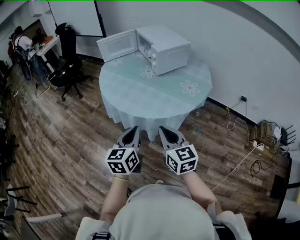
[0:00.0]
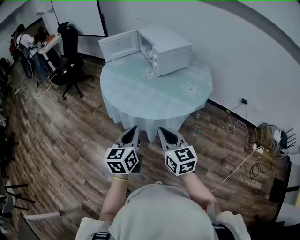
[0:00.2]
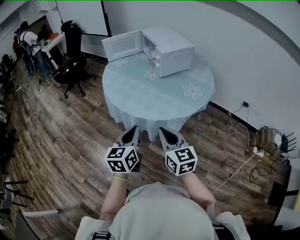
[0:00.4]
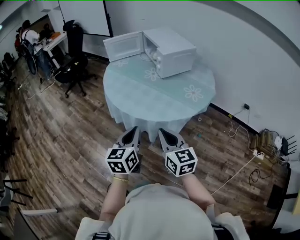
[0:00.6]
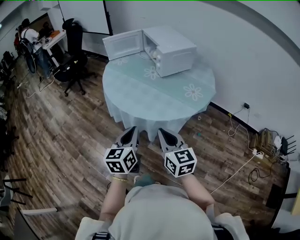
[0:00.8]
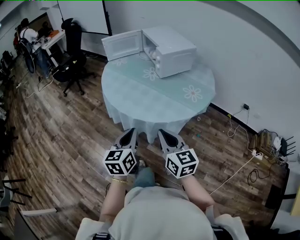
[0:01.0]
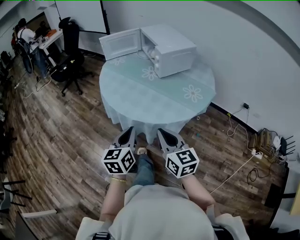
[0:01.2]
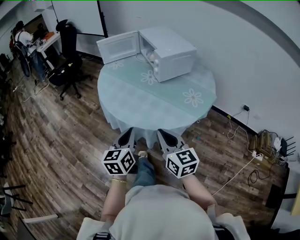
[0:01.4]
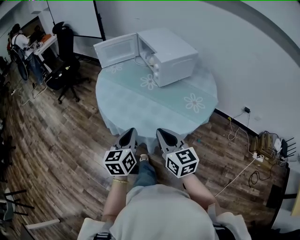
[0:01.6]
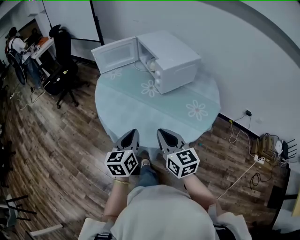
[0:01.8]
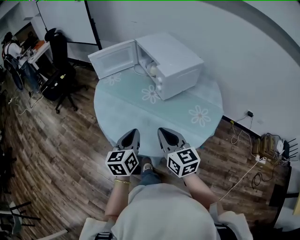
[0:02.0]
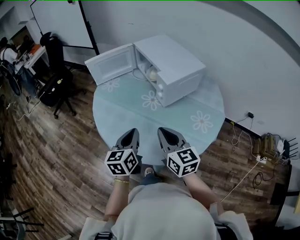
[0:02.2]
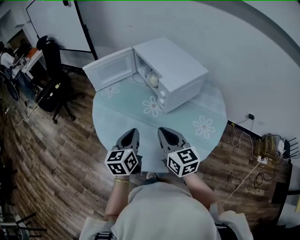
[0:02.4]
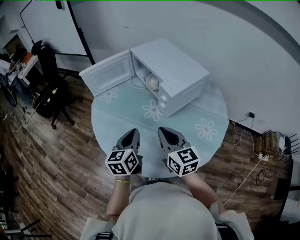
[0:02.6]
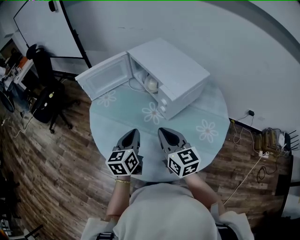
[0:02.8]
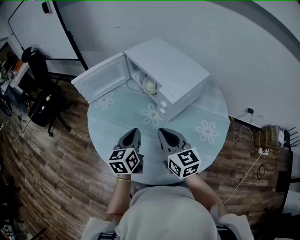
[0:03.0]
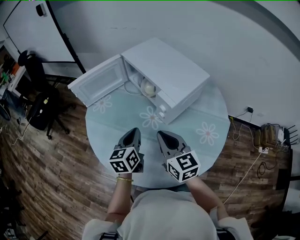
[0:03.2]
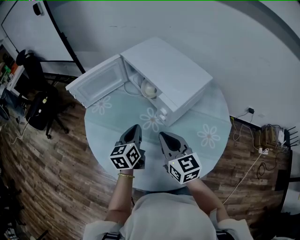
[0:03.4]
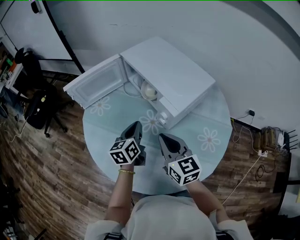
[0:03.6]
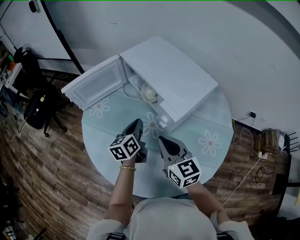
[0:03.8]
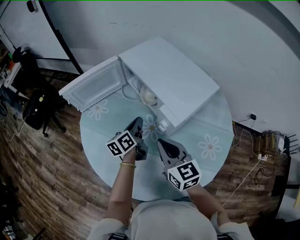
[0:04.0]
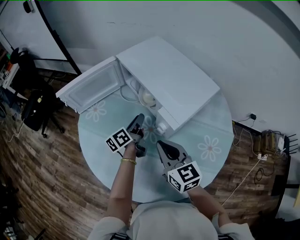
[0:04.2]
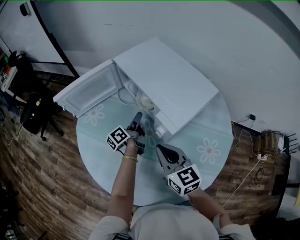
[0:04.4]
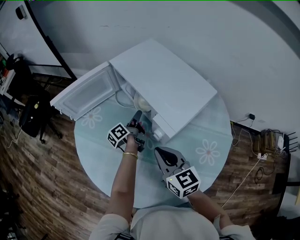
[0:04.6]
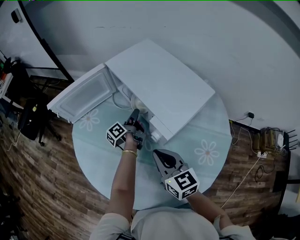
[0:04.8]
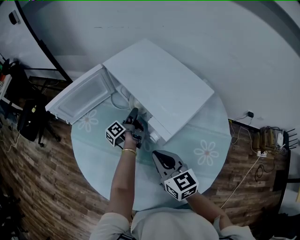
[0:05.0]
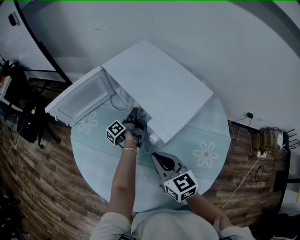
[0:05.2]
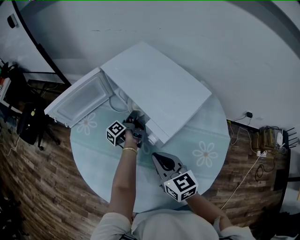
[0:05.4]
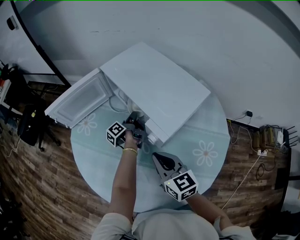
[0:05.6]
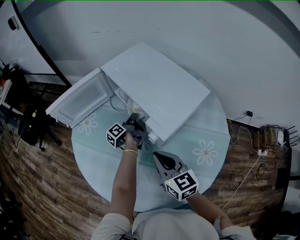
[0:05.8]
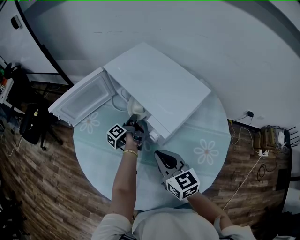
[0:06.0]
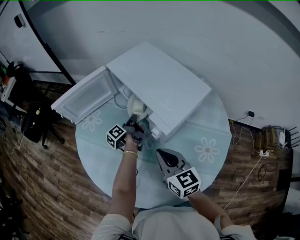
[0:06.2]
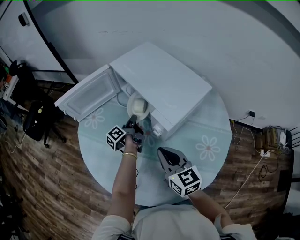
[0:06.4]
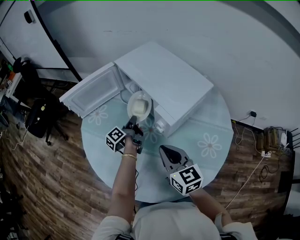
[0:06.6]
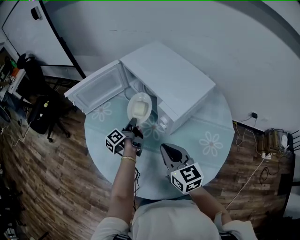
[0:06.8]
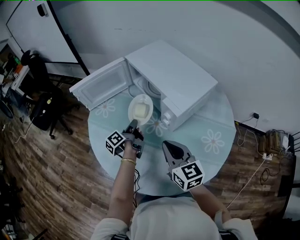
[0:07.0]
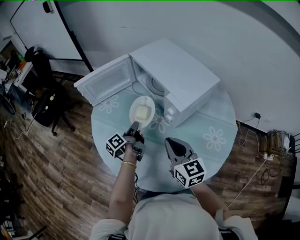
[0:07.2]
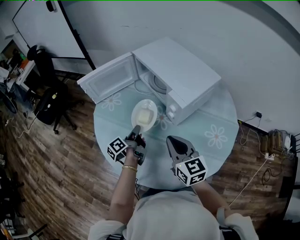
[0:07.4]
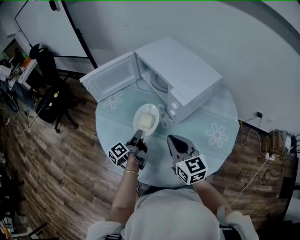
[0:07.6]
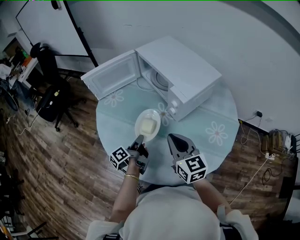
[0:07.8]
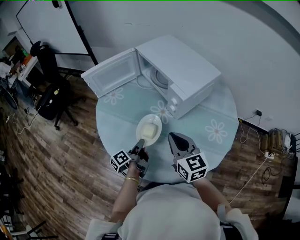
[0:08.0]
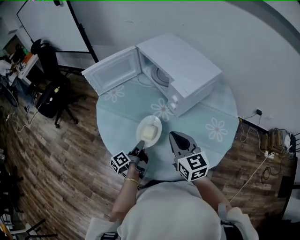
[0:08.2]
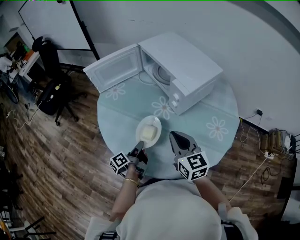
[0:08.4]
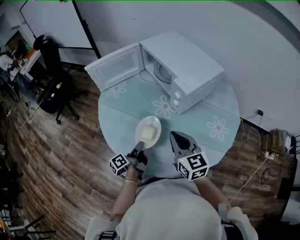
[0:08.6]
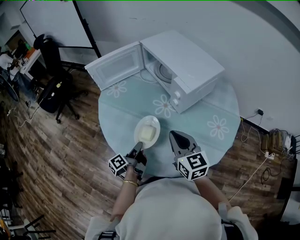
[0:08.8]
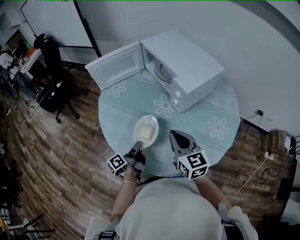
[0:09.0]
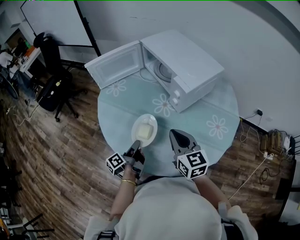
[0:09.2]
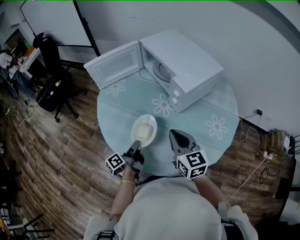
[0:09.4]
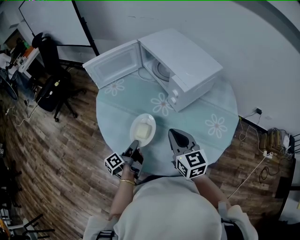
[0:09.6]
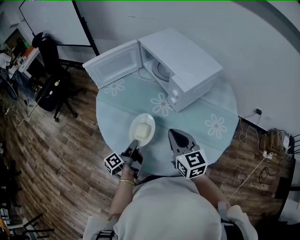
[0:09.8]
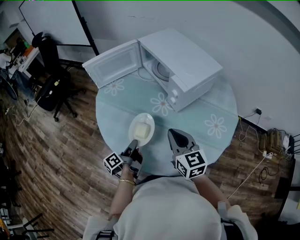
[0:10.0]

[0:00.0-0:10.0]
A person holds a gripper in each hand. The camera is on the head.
0:00.0 to 0:01.4: The grippers both shift forward by roughly 10 cm.
0:01.4 to 0:02.8: Both grippers move forward, roughly 35 cm.
0:02.8 to 0:04.2: The left gripper moves forward and downward, roughly 25 cm, swivels some 40 degrees, and opens its fingers. Meanwhile the right gripper is displaced forward by approximately 10 cm.
0:04.2 to 0:05.8: The left gripper travels forward and downward by approximately 10 cm, and rotates approximately 30 degrees.
0:05.8 to 0:07.2: The right gripper heads backward, covering about 10 cm. Meanwhile the left gripper goes approximately 20 cm backward and to the left.
0:07.2 to 0:08.6: The left gripper heads backward, covering some 20 cm. The right gripper moves backward, roughly 5 cm.
0:08.6 to 0:10.0: The grippers move only a little.

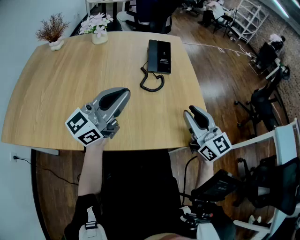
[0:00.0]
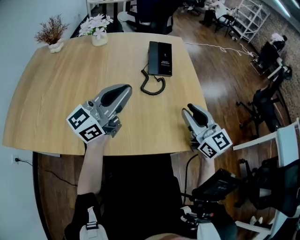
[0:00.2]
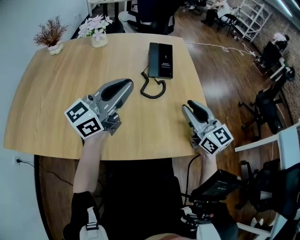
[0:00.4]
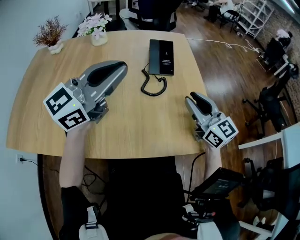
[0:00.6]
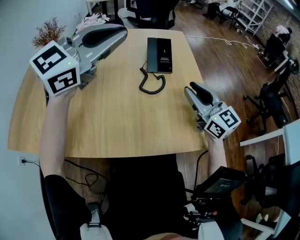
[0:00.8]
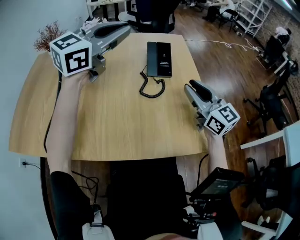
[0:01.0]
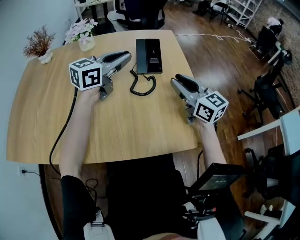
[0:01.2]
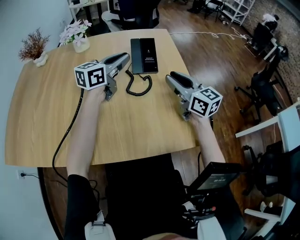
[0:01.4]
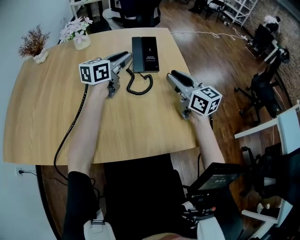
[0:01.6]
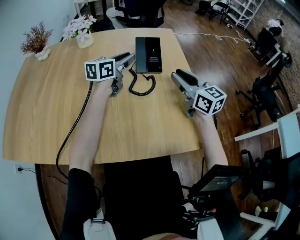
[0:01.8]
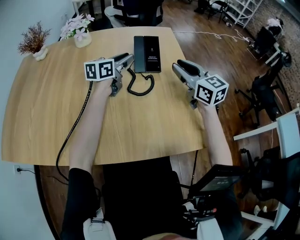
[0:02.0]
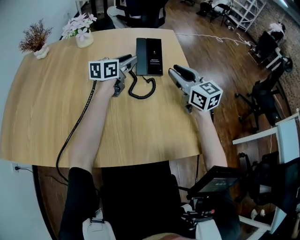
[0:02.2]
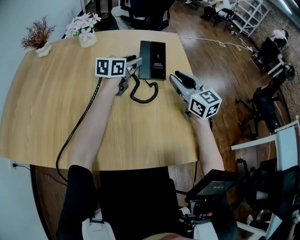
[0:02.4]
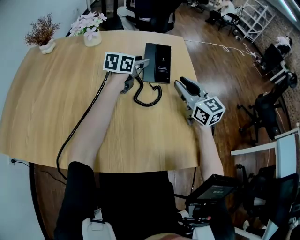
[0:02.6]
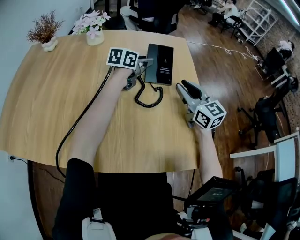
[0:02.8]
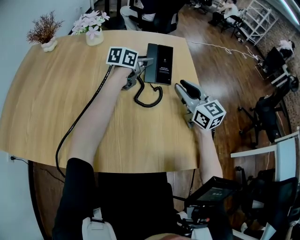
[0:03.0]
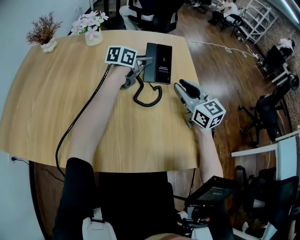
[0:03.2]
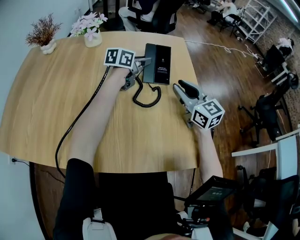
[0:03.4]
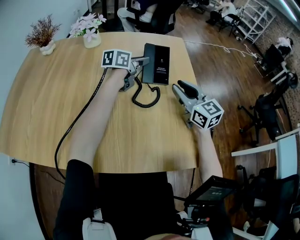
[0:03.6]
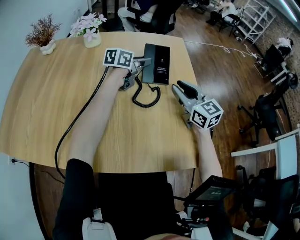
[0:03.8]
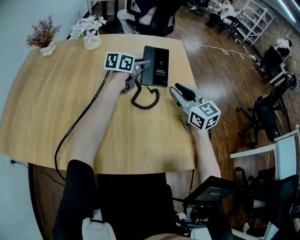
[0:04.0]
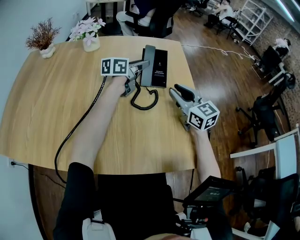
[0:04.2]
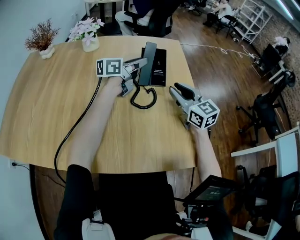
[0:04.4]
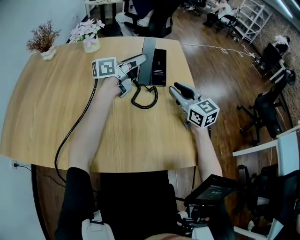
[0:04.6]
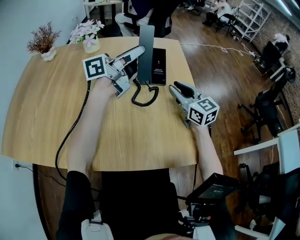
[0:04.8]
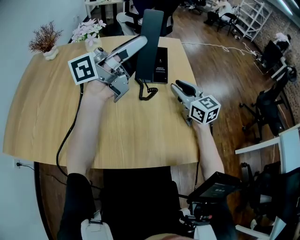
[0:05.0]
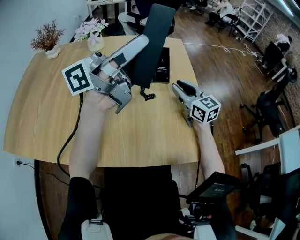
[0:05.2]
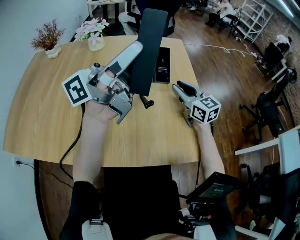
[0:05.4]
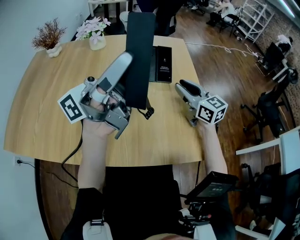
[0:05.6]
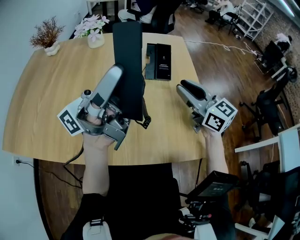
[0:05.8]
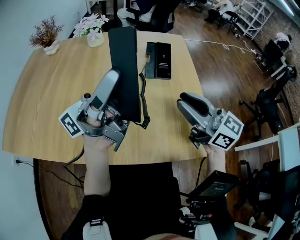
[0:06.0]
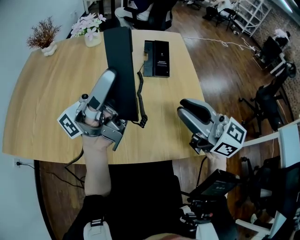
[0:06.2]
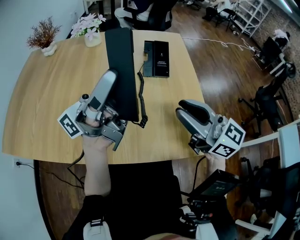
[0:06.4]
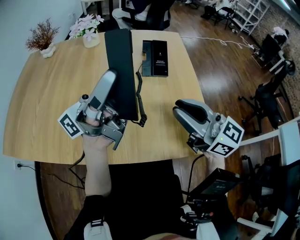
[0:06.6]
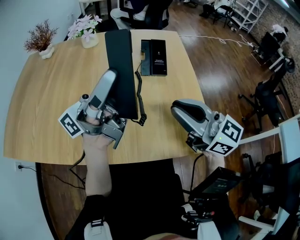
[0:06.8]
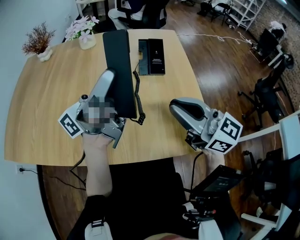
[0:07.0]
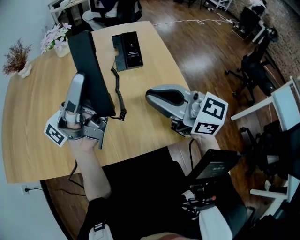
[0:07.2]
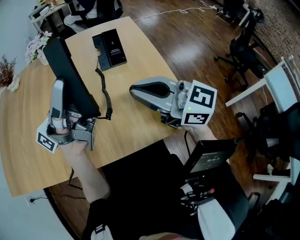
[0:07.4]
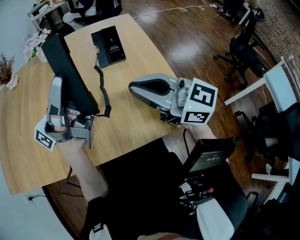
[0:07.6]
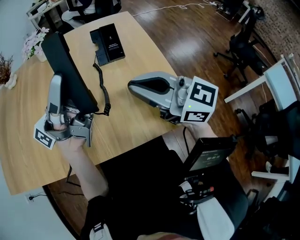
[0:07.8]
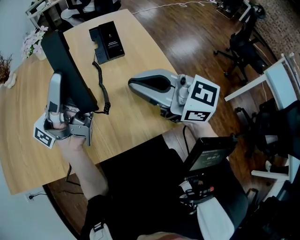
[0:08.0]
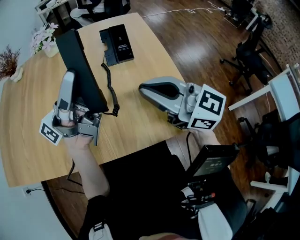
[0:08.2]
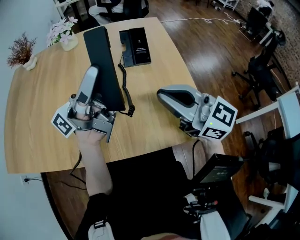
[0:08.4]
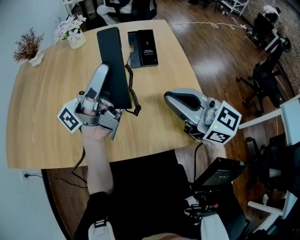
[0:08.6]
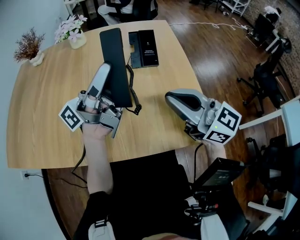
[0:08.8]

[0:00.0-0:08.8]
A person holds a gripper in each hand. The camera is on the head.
0:00.0 to 0:01.4: The right gripper moves forward, some 15 cm. The left gripper heads forward, covering approximately 25 cm, and changes its angle by about 20 degrees.
0:01.4 to 0:03.0: The left gripper travels forward and downward by some 15 cm, changes its angle by some 20 degrees, and opens its fingers, while the right gripper shifts about 5 cm forward.
0:03.0 to 0:04.4: The left gripper goes roughly 5 cm upward, turns by roughly 20 degrees, and closes up.
0:04.4 to 0:05.8: The left gripper is displaced backward and upward by about 35 cm, and angles its fingers upward, by approximately 50 degrees. Meanwhile the right gripper shifts approximately 10 cm backward and upward.
0:05.8 to 0:07.4: The right gripper shifts about 10 cm backward, and closes.
0:07.4 to 0:08.8: The left gripper moves approximately 5 cm.

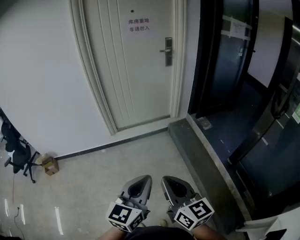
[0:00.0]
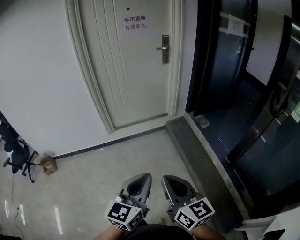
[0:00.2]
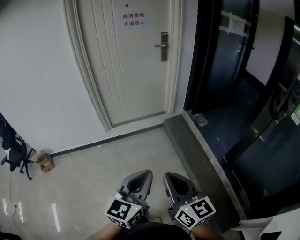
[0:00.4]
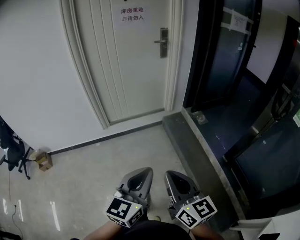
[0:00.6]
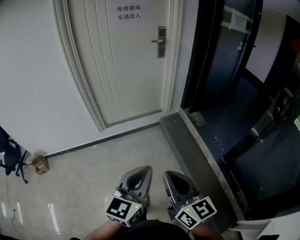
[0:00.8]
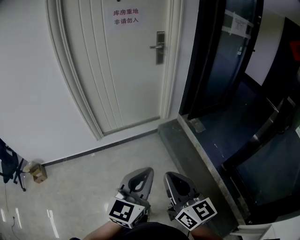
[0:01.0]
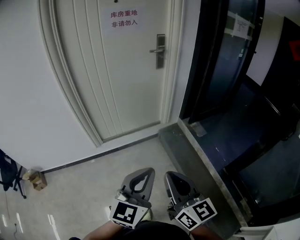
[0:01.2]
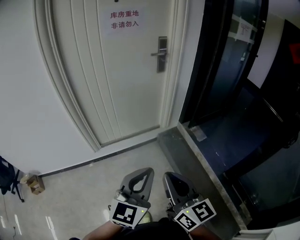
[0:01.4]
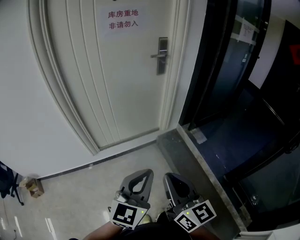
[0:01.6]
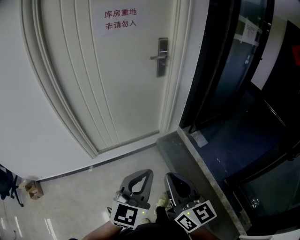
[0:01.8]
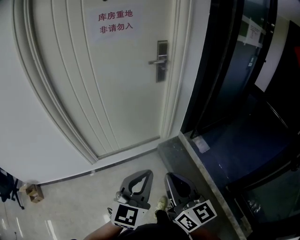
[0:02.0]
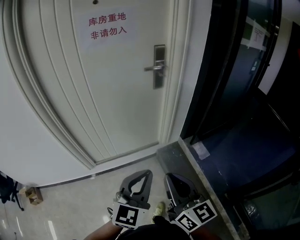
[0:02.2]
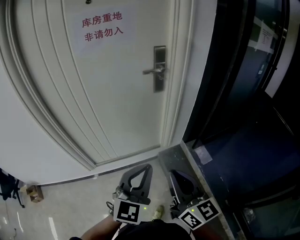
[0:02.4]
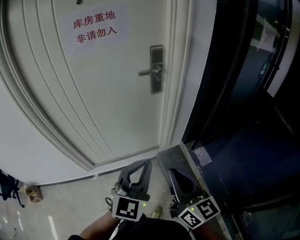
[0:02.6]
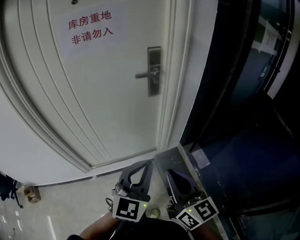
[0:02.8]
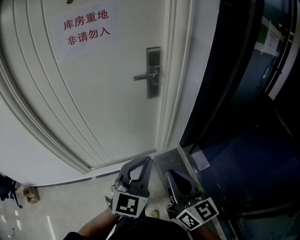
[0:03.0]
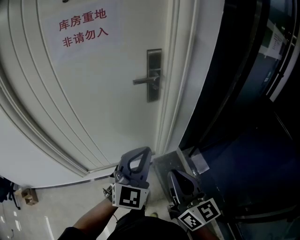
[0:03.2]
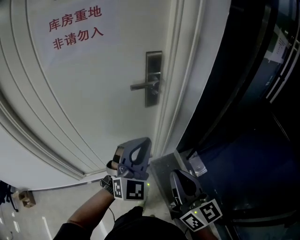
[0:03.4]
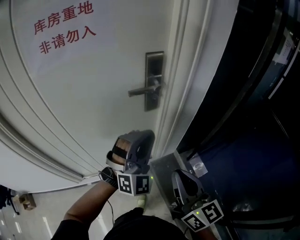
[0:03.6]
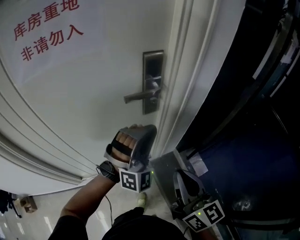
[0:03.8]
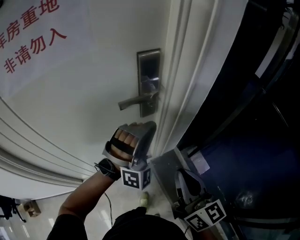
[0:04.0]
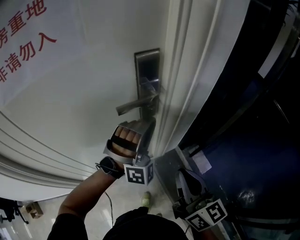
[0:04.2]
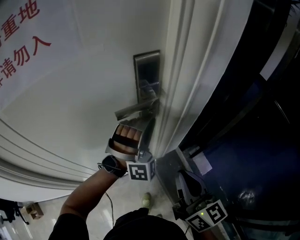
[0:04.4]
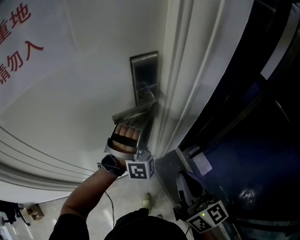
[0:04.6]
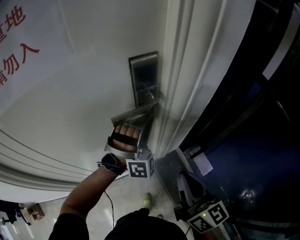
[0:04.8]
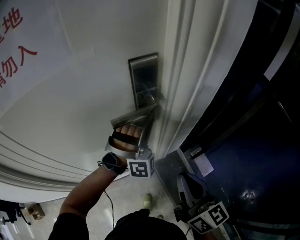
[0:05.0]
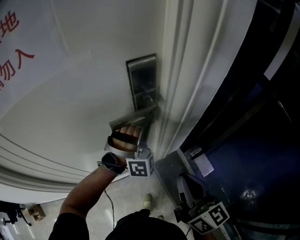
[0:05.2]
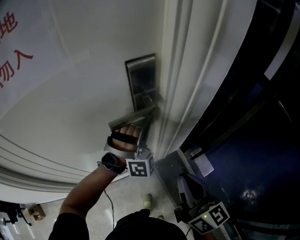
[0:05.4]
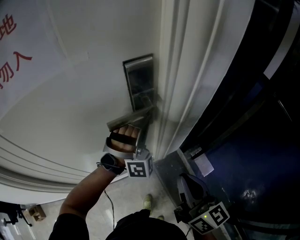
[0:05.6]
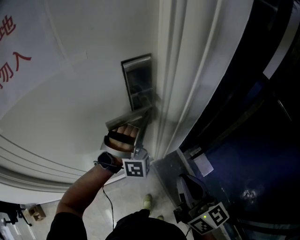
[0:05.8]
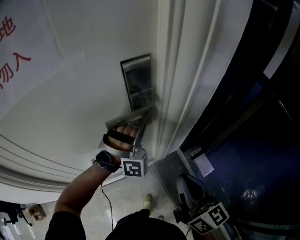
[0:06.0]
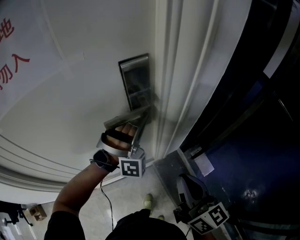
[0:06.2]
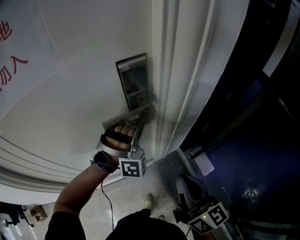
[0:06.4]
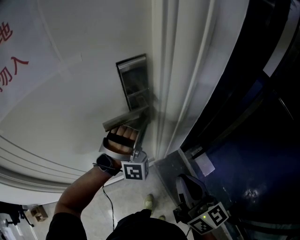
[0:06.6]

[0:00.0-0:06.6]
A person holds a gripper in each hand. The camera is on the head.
0:00.0 to 0:01.6: The two grippers go about 35 cm forward.
0:01.6 to 0:03.2: Both grippers move forward, about 40 cm. The left gripper swivels some 30 degrees.
0:03.2 to 0:05.0: The right gripper moves forward, roughly 25 cm. The left gripper moves forward, about 35 cm, and rolls clockwise, seen from behind, by approximately 60 degrees.
0:05.0 to 0:06.6: The grippers make only small movements.
